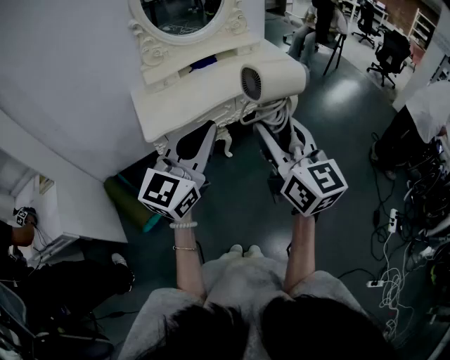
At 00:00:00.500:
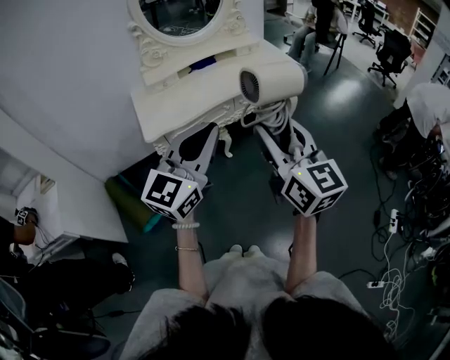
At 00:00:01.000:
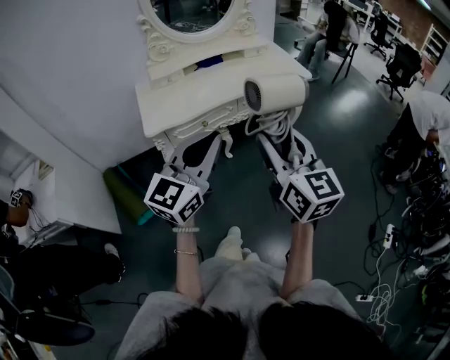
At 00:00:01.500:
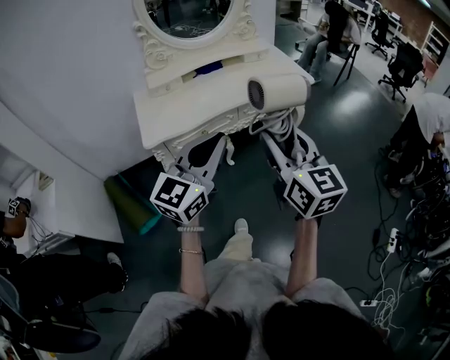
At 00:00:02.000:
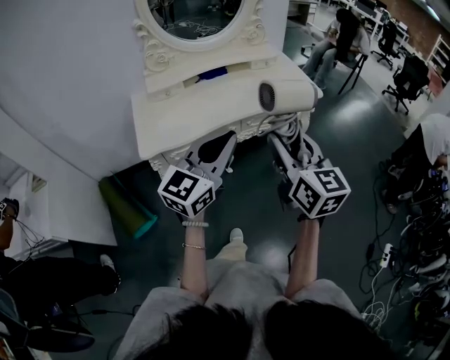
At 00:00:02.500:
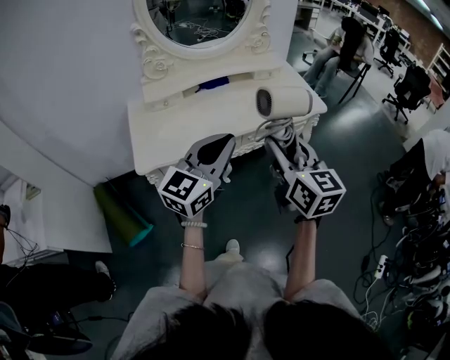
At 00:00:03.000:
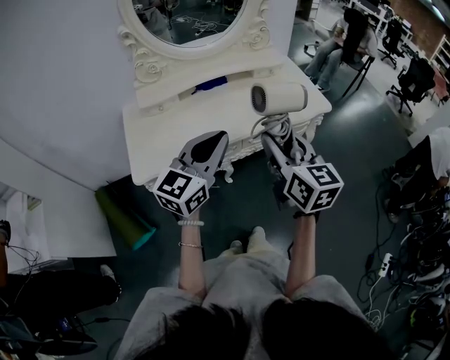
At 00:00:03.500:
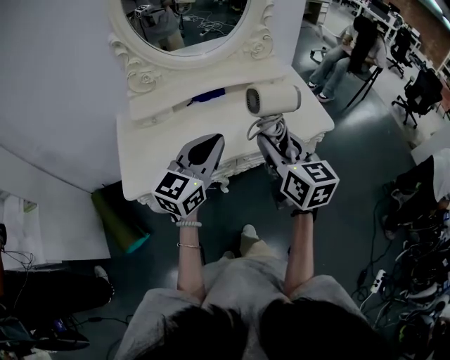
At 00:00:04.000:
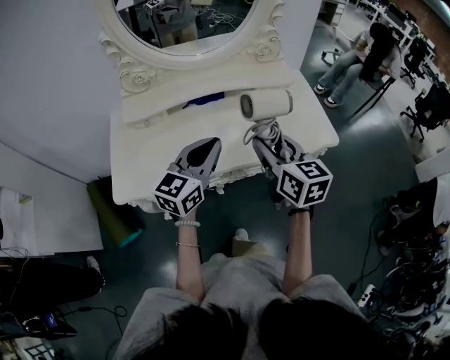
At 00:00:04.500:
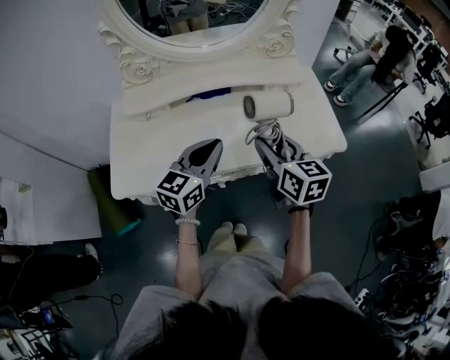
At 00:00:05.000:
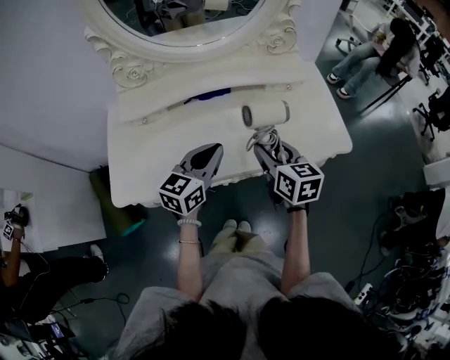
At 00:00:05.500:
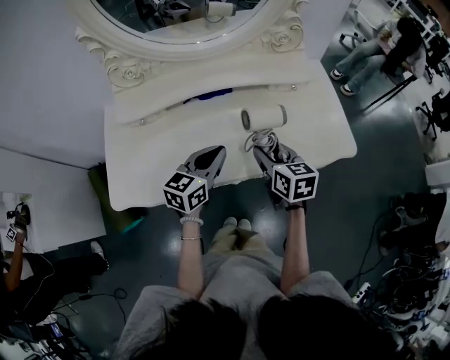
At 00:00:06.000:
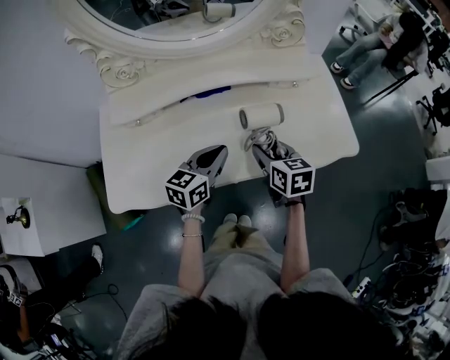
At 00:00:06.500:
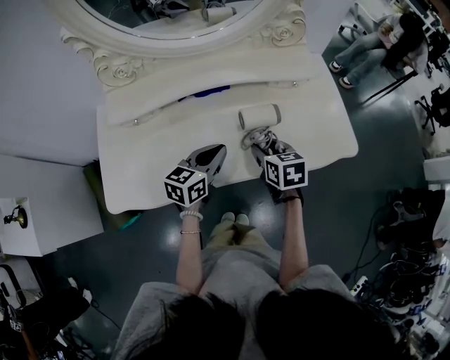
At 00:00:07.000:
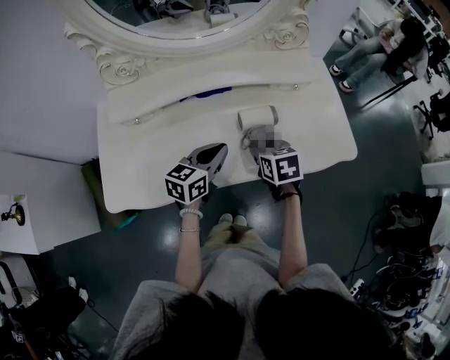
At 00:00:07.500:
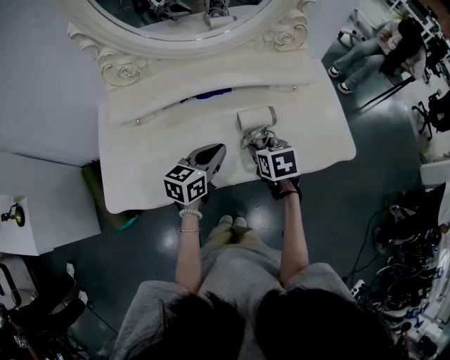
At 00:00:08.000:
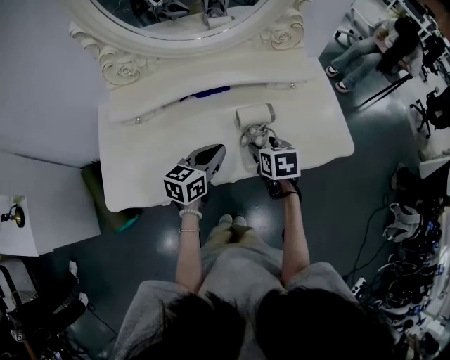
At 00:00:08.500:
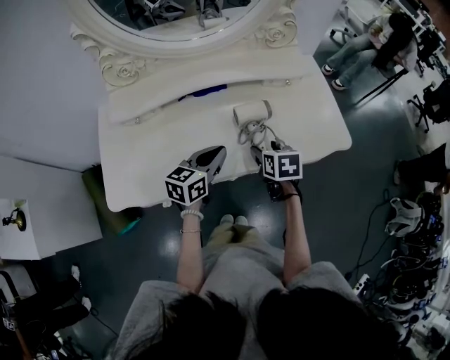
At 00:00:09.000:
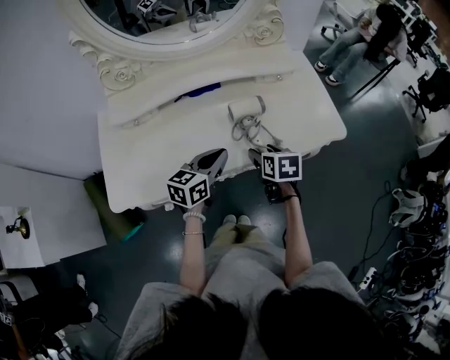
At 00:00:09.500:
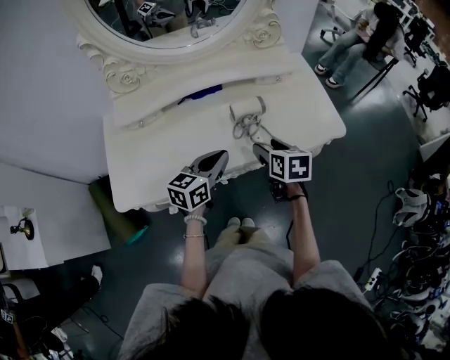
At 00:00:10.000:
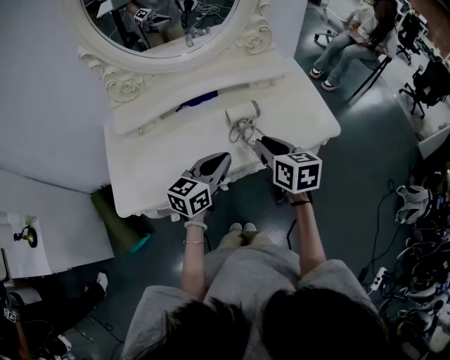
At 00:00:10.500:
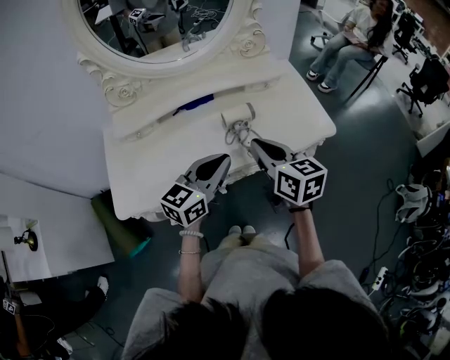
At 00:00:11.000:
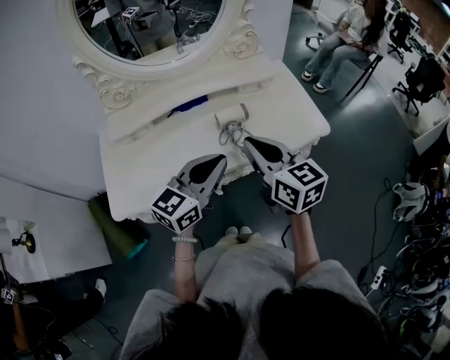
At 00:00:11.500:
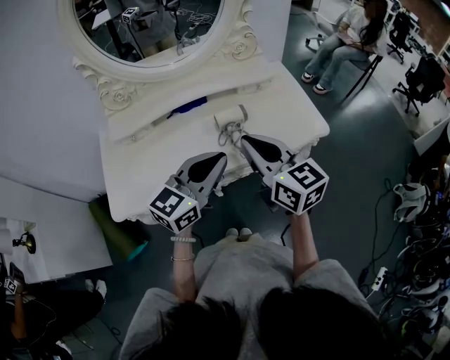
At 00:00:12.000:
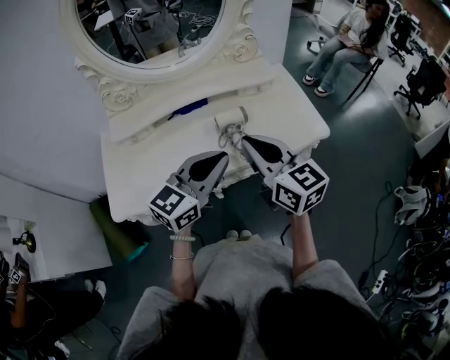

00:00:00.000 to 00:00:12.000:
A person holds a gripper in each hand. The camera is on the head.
00:00:00.000 to 00:00:02.000: Both grippers move forward, approximately 15 cm.
00:00:02.000 to 00:00:04.000: Both grippers move forward, roughly 30 cm.
00:00:04.000 to 00:00:06.000: The grippers both shift downward and forward by about 20 cm. The left gripper turns by roughly 20 degrees. Meanwhile the right gripper changes its angle by roughly 20 degrees.
00:00:06.000 to 00:00:08.000: The grippers move only a little.
00:00:08.000 to 00:00:10.000: The right gripper heads upward and backward, covering some 15 cm, changes its angle by roughly 20 degrees, and closes up; the left gripper shifts roughly 10 cm backward and upward.
00:00:10.000 to 00:00:12.000: Both grippers move upward, approximately 10 cm. The right gripper rotates about 30 degrees.

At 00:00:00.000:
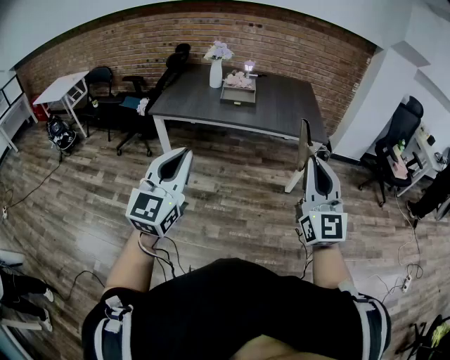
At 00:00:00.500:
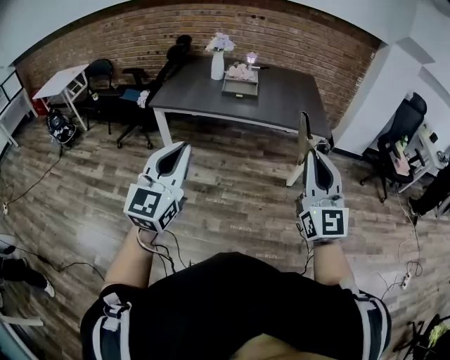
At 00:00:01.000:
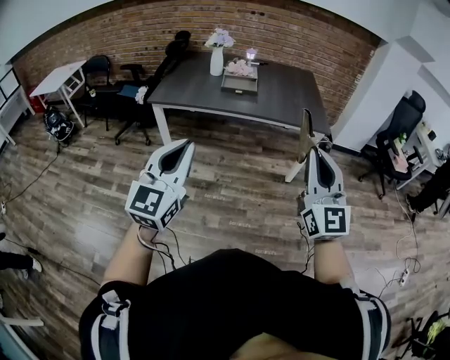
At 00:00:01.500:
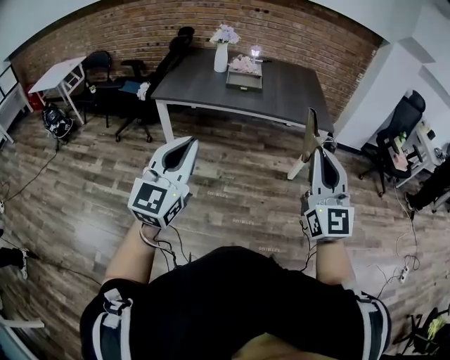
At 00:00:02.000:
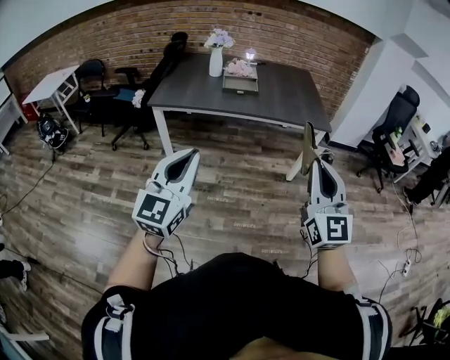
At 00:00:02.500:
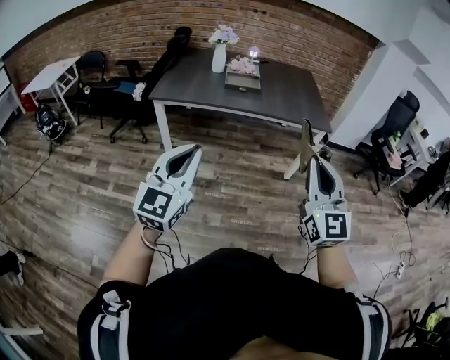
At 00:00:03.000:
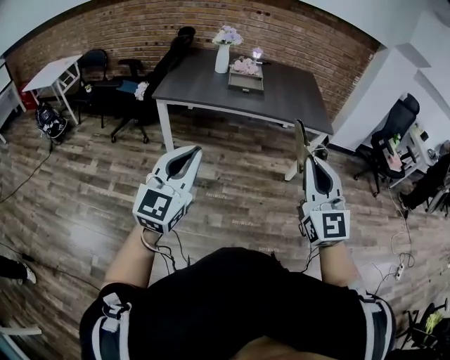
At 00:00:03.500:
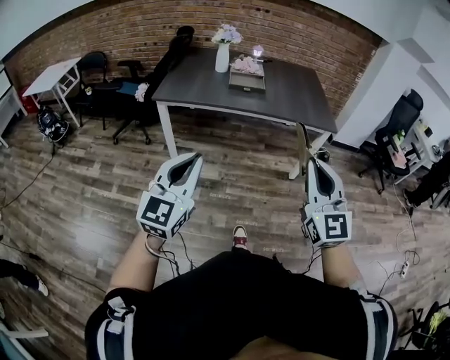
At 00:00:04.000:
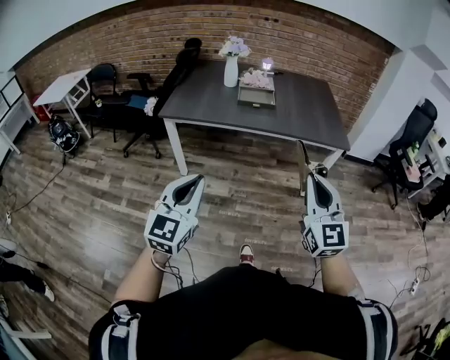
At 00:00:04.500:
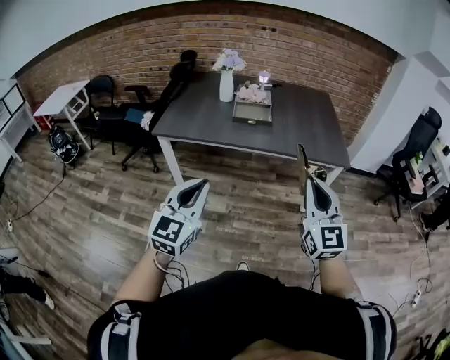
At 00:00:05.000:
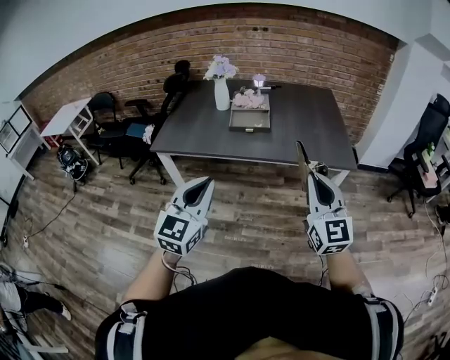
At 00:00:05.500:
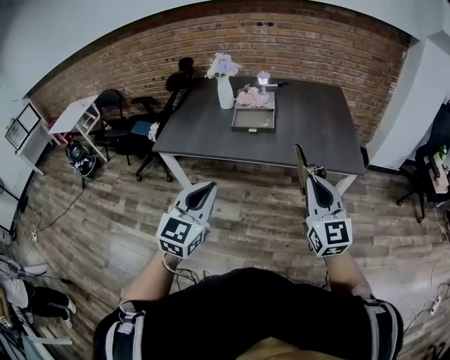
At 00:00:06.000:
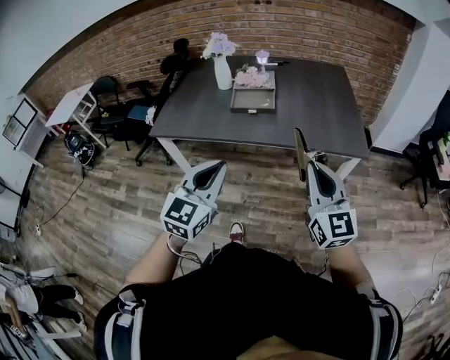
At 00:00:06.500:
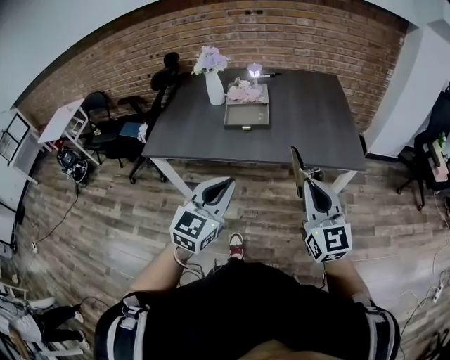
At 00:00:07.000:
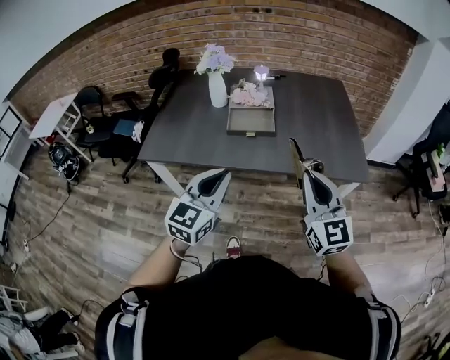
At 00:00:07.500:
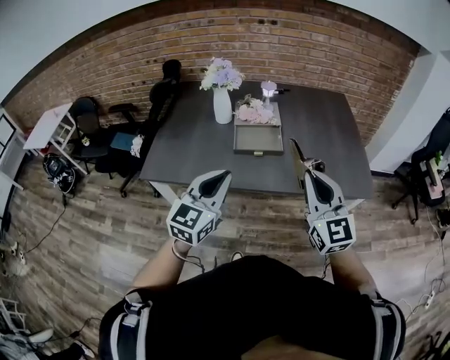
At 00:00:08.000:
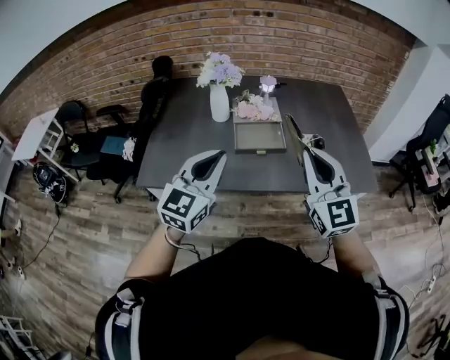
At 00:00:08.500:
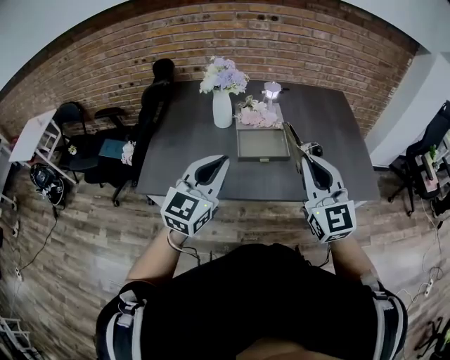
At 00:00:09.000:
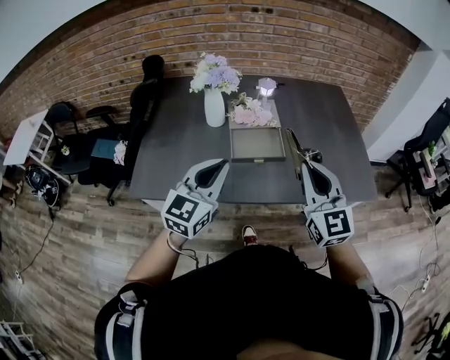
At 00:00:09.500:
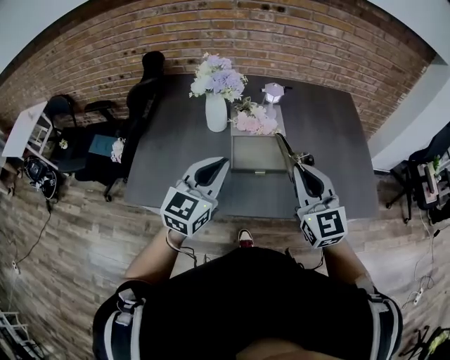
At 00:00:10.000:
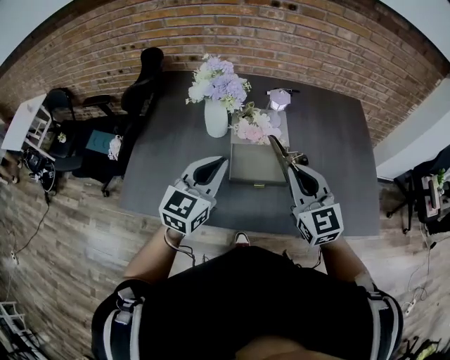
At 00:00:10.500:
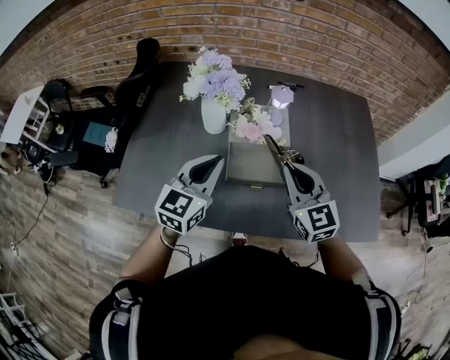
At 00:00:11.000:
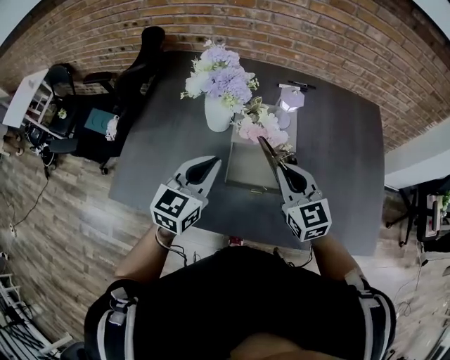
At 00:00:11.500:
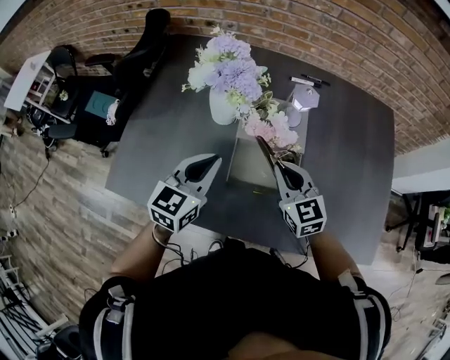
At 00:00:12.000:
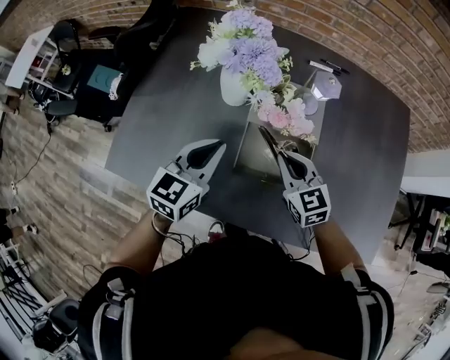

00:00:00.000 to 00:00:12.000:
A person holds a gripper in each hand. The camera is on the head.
00:00:00.000 to 00:00:02.000: The left gripper changes place by about 5 cm. The right gripper heads to the left, covering about 5 cm.
00:00:02.000 to 00:00:04.000: The grippers both shift forward and downward by approximately 10 cm.
00:00:04.000 to 00:00:06.000: The right gripper travels forward by roughly 25 cm. Meanwhile the left gripper goes some 30 cm forward and to the right.
00:00:06.000 to 00:00:08.000: Both grippers travel together forward and to the left, about 30 cm.
00:00:08.000 to 00:00:10.000: The left gripper shifts approximately 20 cm forward. Meanwhile the right gripper moves forward and downward, roughly 25 cm.
00:00:10.000 to 00:00:12.000: The right gripper is displaced downward and forward by about 20 cm, and changes its angle by about 30 degrees. Meanwhile the left gripper moves downward and forward, approximately 15 cm.

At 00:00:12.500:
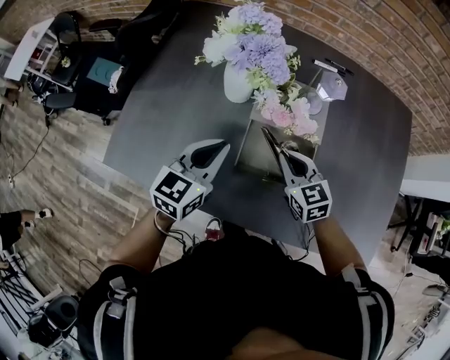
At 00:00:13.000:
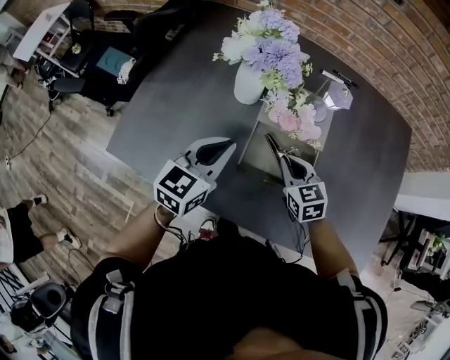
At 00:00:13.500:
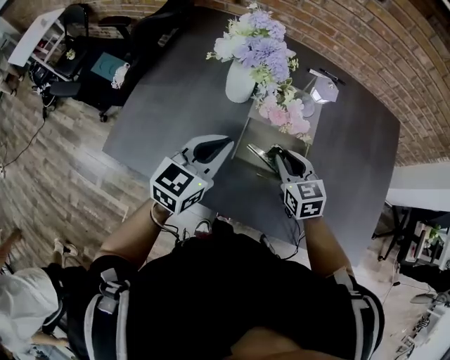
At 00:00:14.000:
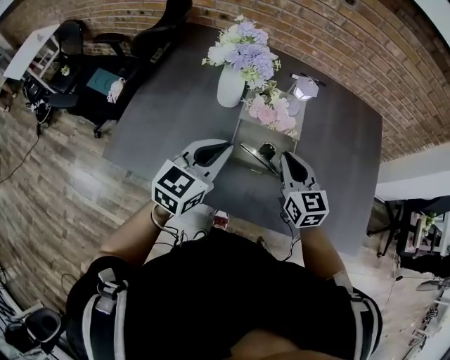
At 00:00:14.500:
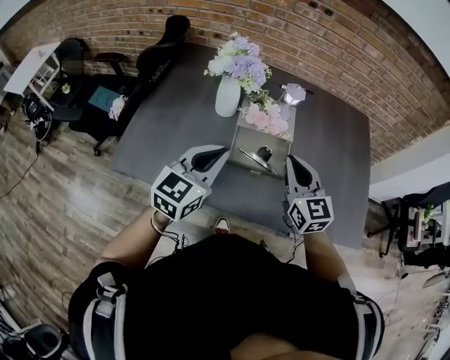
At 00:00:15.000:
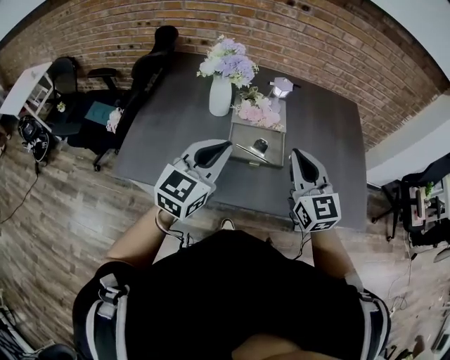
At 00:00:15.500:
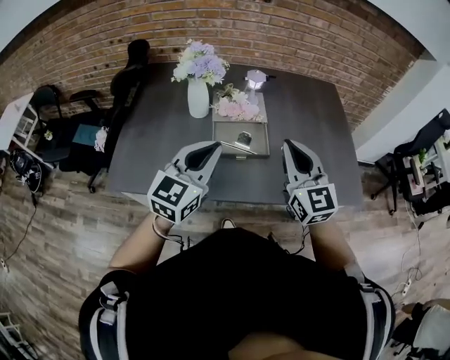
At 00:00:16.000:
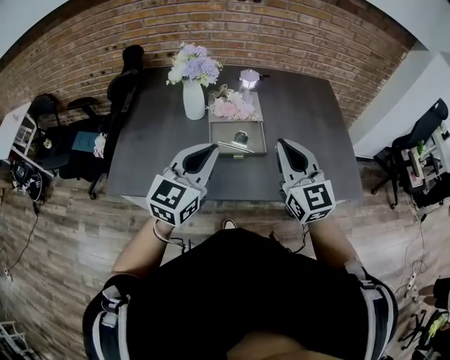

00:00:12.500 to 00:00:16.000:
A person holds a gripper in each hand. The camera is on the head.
00:00:12.500 to 00:00:14.500: The left gripper heads backward and upward, covering roughly 15 cm, while the right gripper heads upward and backward, covering roughly 20 cm, and turns by roughly 30 degrees.
00:00:14.500 to 00:00:16.000: The right gripper is displaced backward and upward by some 10 cm. The left gripper goes approximately 5 cm backward.
